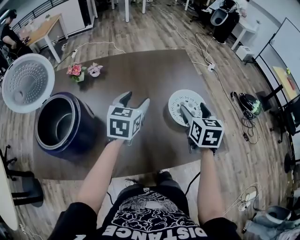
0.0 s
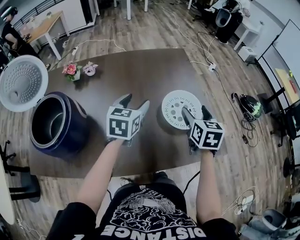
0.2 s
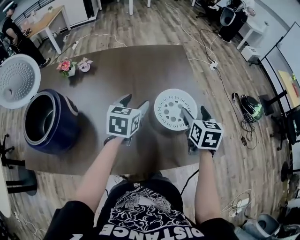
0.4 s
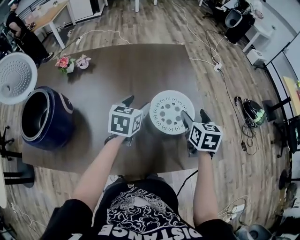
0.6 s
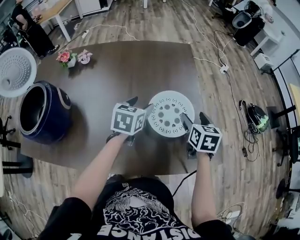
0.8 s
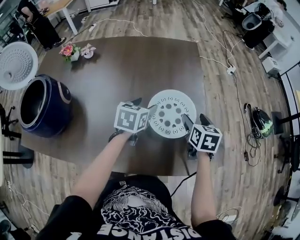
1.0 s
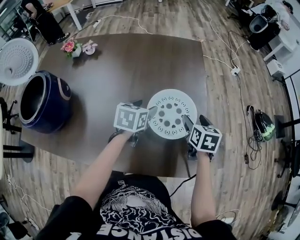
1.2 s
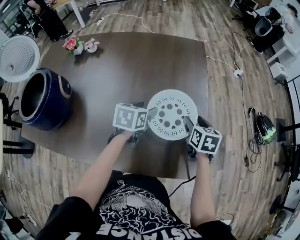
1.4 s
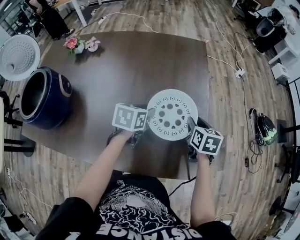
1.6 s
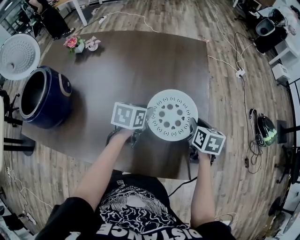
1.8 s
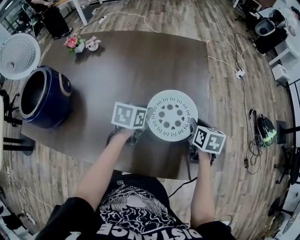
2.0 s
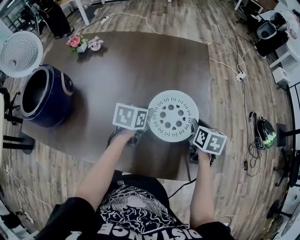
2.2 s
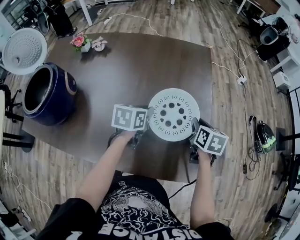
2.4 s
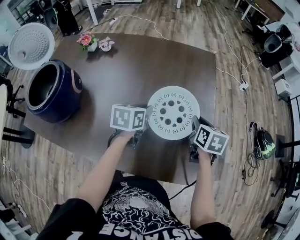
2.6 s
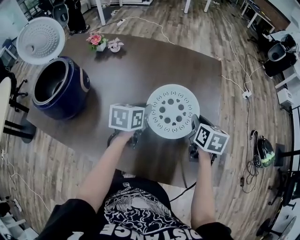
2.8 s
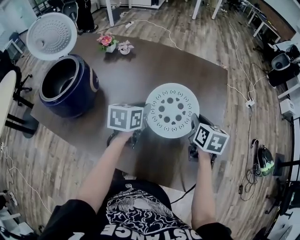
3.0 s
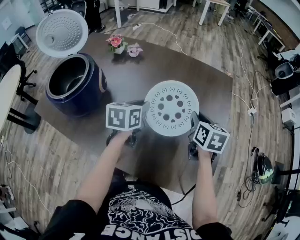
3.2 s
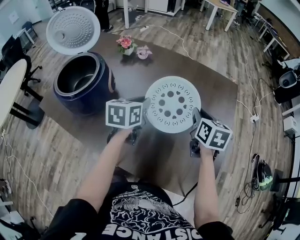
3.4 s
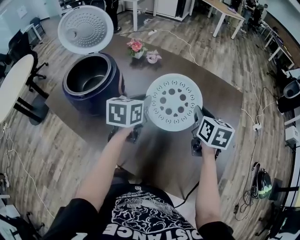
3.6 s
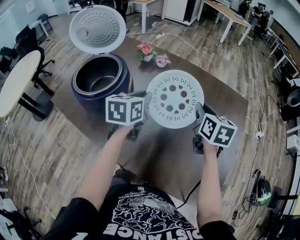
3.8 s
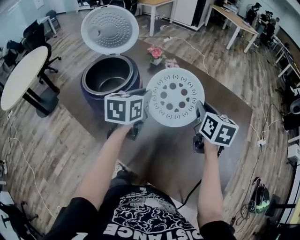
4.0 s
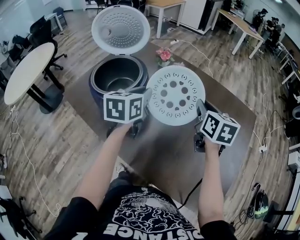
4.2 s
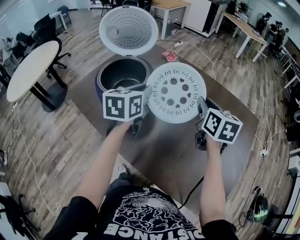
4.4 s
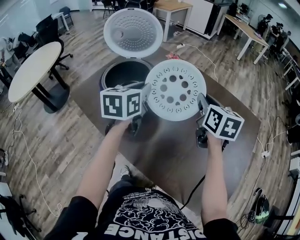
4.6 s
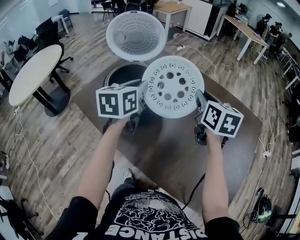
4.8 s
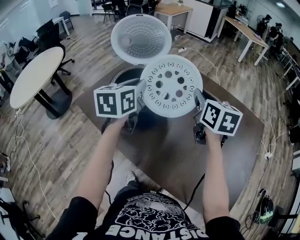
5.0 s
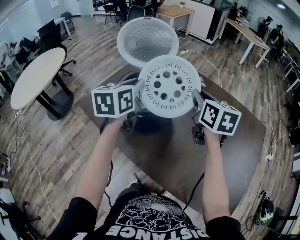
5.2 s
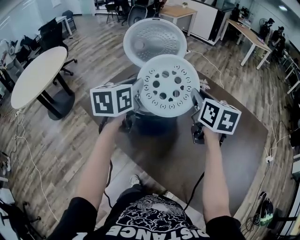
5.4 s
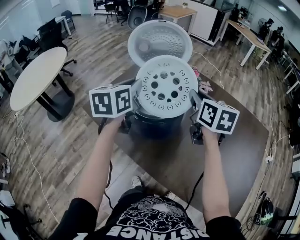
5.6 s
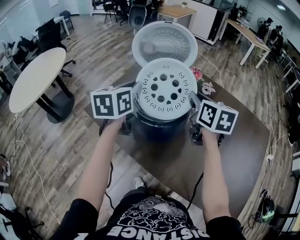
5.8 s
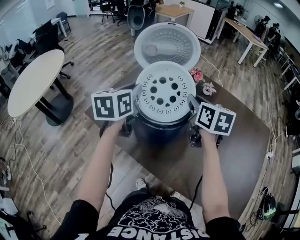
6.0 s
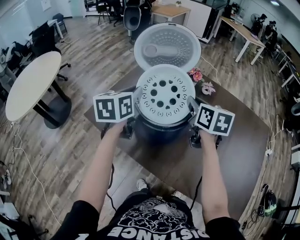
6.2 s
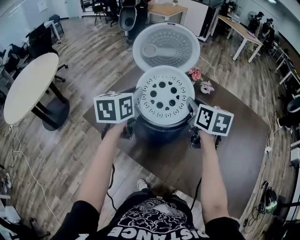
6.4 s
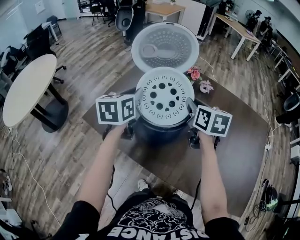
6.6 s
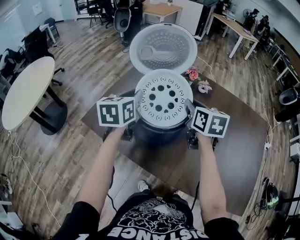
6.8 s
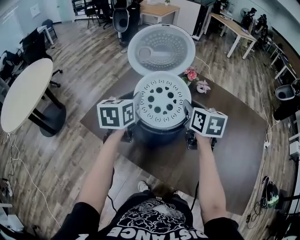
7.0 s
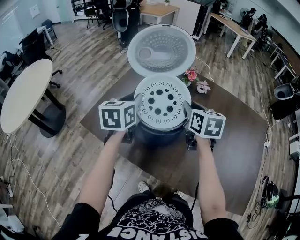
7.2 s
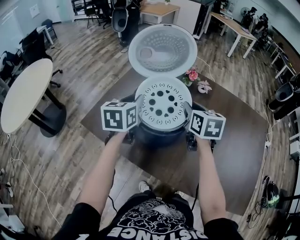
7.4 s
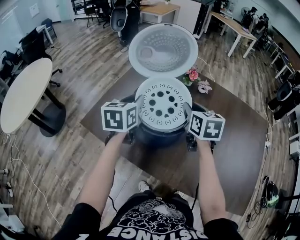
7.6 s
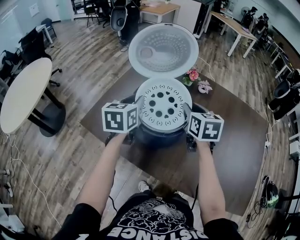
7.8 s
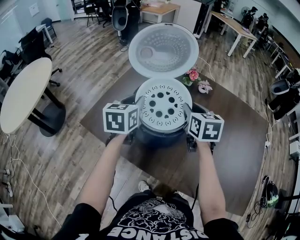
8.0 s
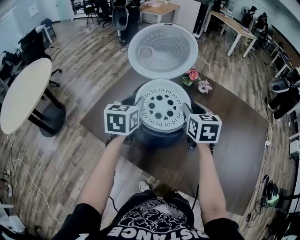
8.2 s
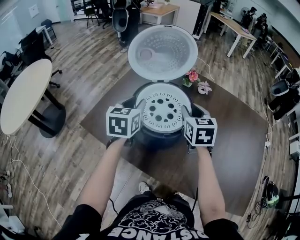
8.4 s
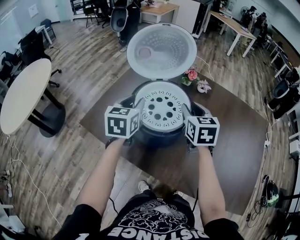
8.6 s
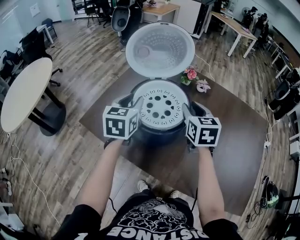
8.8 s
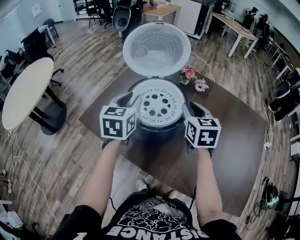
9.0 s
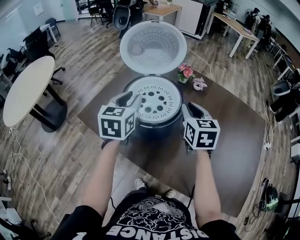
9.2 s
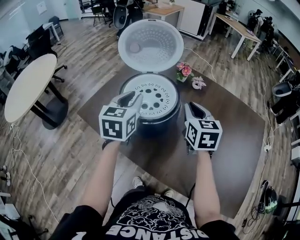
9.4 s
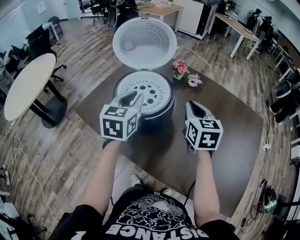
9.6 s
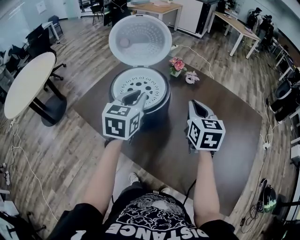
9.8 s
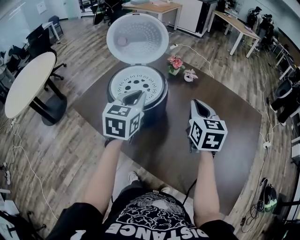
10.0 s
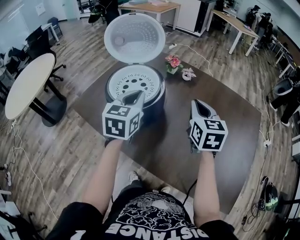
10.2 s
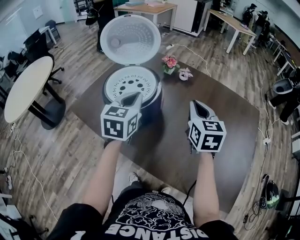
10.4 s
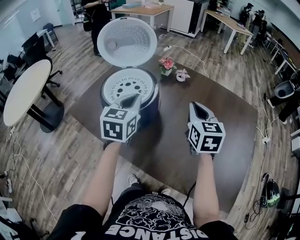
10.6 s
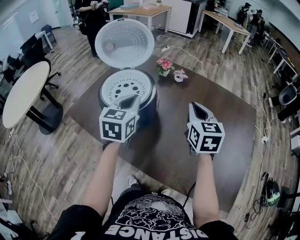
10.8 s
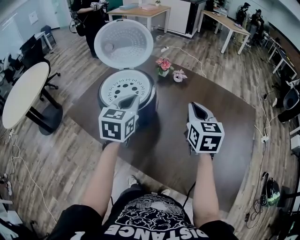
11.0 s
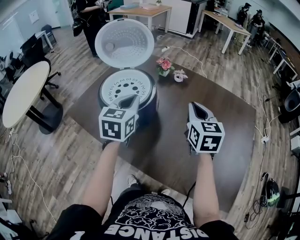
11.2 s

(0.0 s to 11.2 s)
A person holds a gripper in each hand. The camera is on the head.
0.0 s - 1.6 s: The right gripper moves downward, to the right and forward, approximately 25 cm, turns by roughly 20 degrees, and closes, while the left gripper heads downward and to the right, covering some 20 cm, and rotates roughly 30 degrees.
1.6 s - 3.2 s: Both grippers move to the left and upward, approximately 20 cm. The left gripper swivels roughly 30 degrees.
3.2 s - 4.8 s: The two grippers go some 35 cm to the left and upward. The left gripper changes its angle by roughly 30 degrees. The right gripper changes its angle by approximately 30 degrees.
4.8 s - 6.4 s: Both grippers move to the left, some 15 cm.
6.4 s - 8.0 s: The left gripper ends up about 5 cm from where it was.
8.0 s - 9.6 s: The grippers both shift to the right and backward by roughly 10 cm.
9.6 s - 11.2 s: Both grippers travel together to the right, some 10 cm.

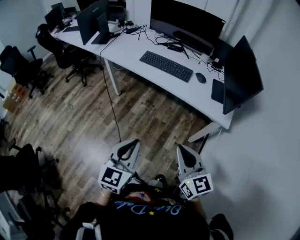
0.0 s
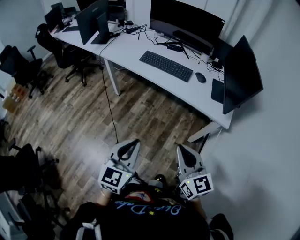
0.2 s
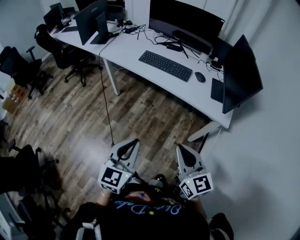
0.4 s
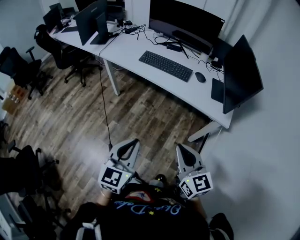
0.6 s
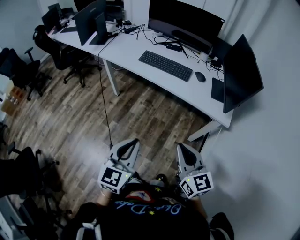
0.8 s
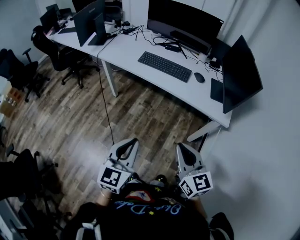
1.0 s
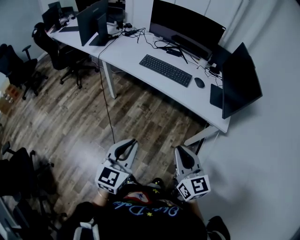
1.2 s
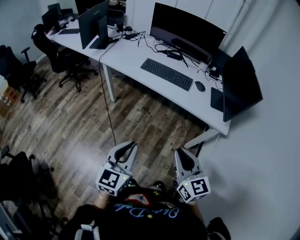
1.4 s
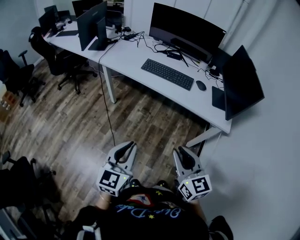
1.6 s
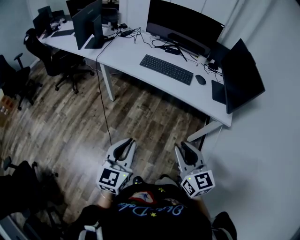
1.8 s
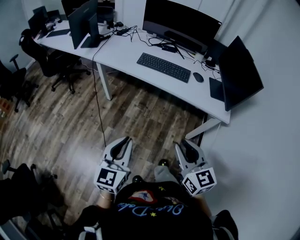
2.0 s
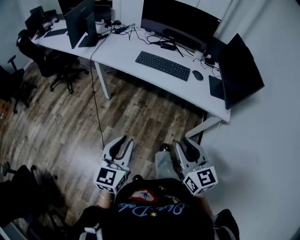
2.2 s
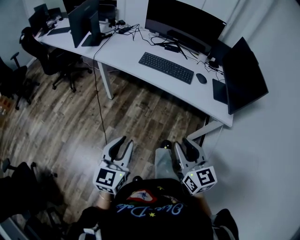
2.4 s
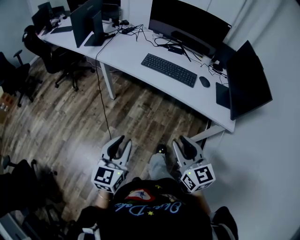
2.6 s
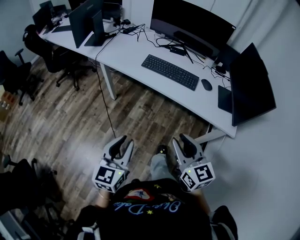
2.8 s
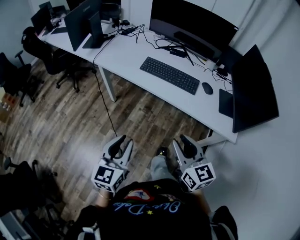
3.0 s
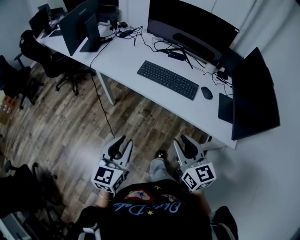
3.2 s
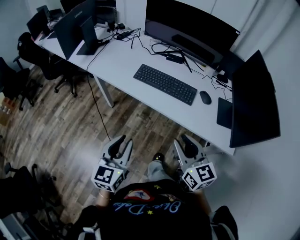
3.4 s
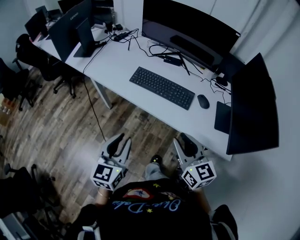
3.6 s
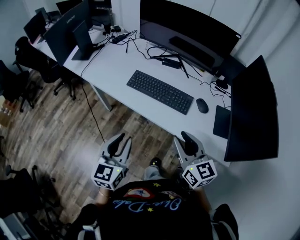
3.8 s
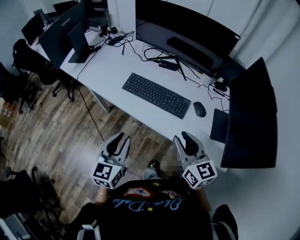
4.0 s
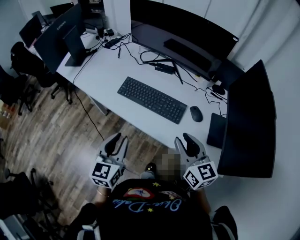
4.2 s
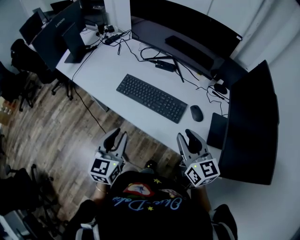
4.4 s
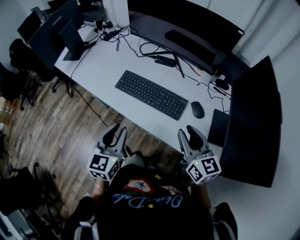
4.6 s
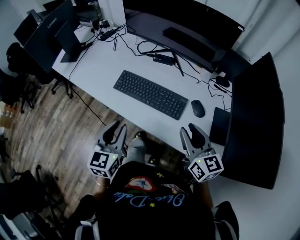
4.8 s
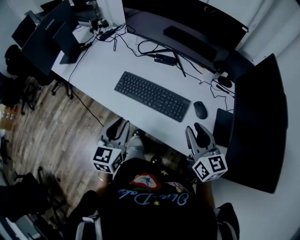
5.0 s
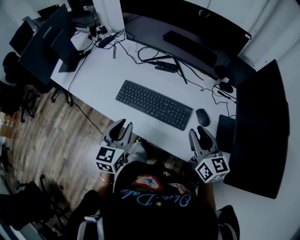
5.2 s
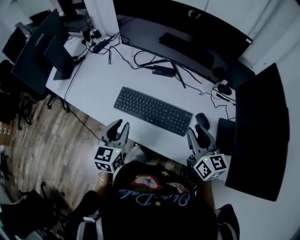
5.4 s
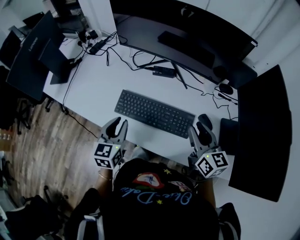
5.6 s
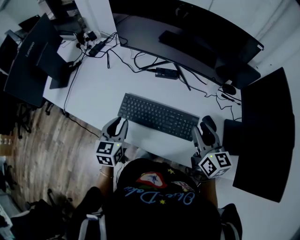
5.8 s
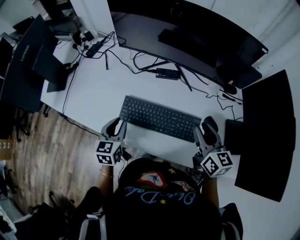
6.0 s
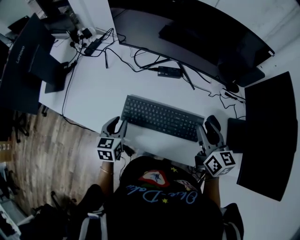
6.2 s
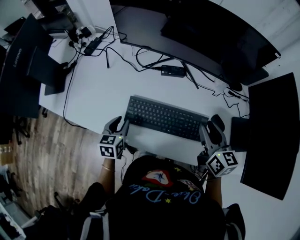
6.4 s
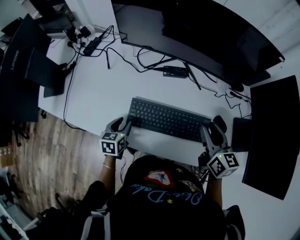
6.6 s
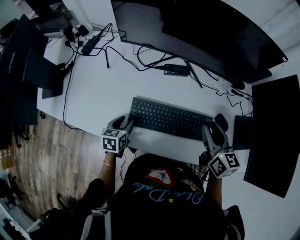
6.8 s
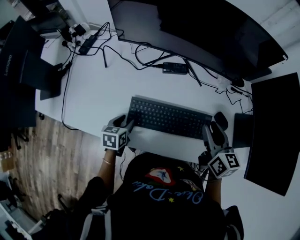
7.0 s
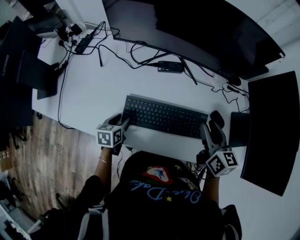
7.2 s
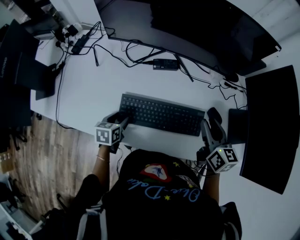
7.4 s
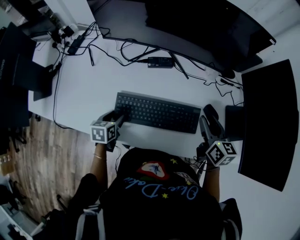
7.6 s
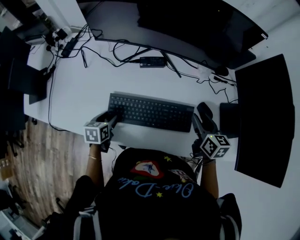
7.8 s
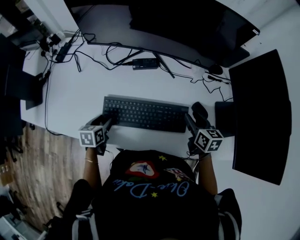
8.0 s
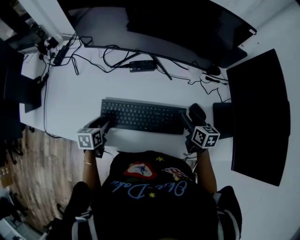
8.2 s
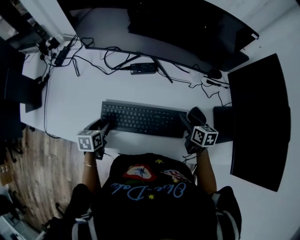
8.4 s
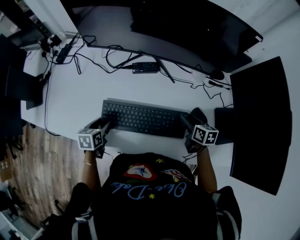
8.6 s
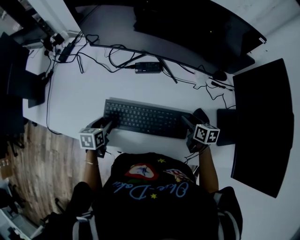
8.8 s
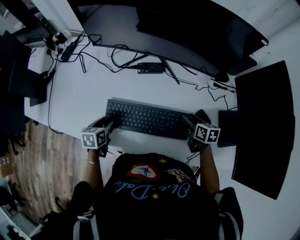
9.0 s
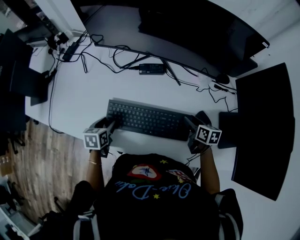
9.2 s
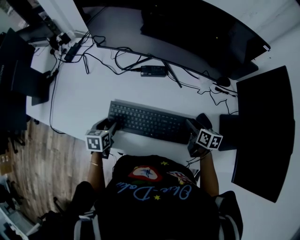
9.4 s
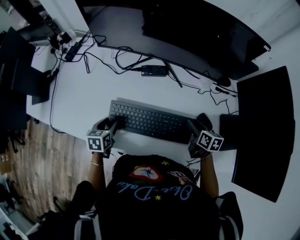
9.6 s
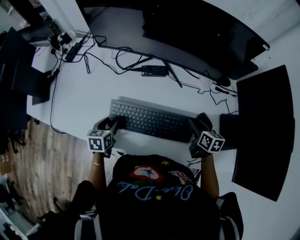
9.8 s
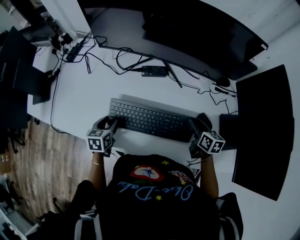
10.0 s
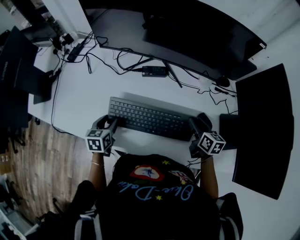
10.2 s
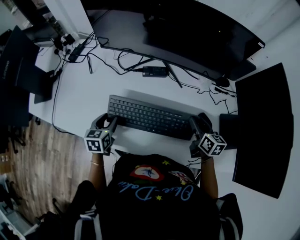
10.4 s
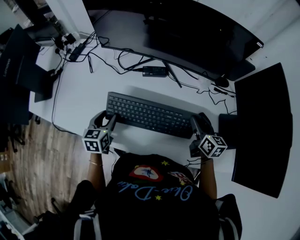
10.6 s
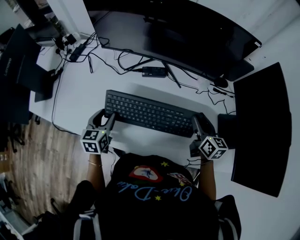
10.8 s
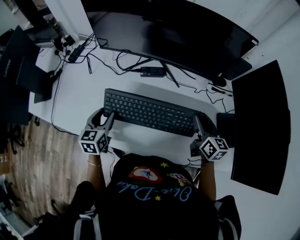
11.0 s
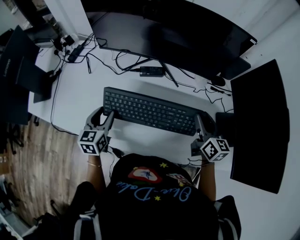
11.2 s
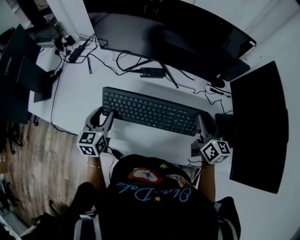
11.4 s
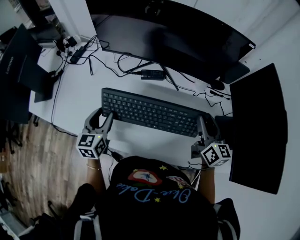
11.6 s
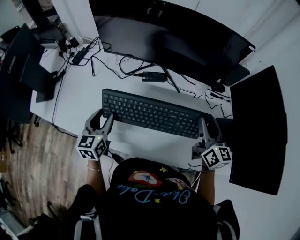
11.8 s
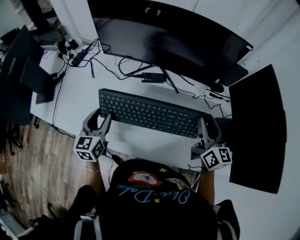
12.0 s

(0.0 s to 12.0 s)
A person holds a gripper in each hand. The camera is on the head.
0.0 s - 1.6 s: Both grippers move to the left, some 10 cm.
1.6 s - 3.0 s: The two grippers go approximately 15 cm forward.
3.0 s - 4.4 s: Both grippers move forward and to the right, some 30 cm.
4.4 s - 6.0 s: The right gripper is displaced forward by about 15 cm, and rotates about 20 degrees; the left gripper travels forward and downward by roughly 25 cm.
6.0 s - 7.6 s: The right gripper ends up some 5 cm from where it was; the left gripper shifts about 10 cm downward, swivels roughly 30 degrees, and opens.
7.6 s - 9.0 s: The right gripper is displaced downward by about 15 cm, and changes its angle by roughly 20 degrees.
9.0 s - 10.4 s: The right gripper is displaced upward by some 10 cm, while the left gripper shifts some 5 cm upward.
10.4 s - 12.0 s: Both grippers move upward, some 15 cm. The left gripper turns by roughly 20 degrees. The right gripper turns by about 30 degrees.

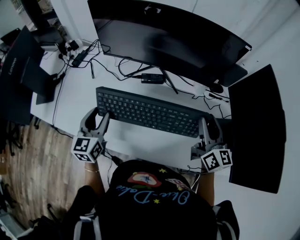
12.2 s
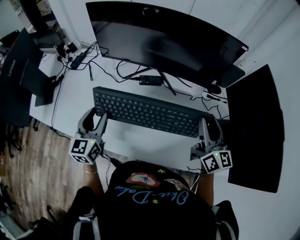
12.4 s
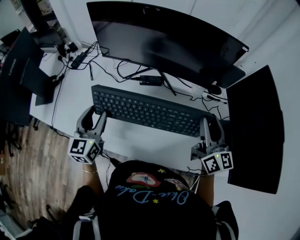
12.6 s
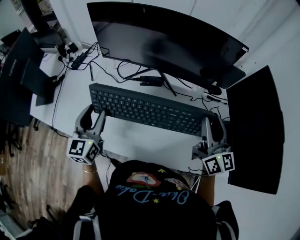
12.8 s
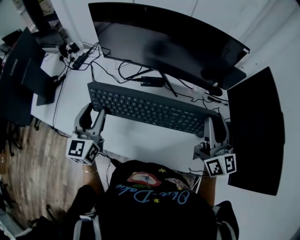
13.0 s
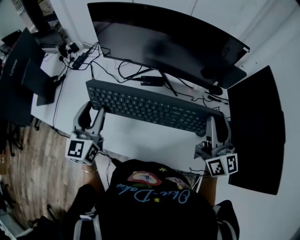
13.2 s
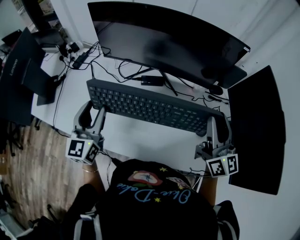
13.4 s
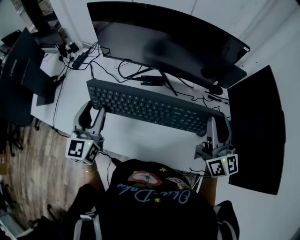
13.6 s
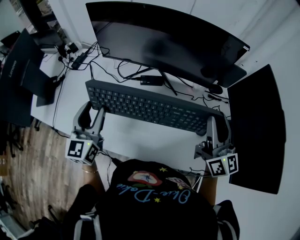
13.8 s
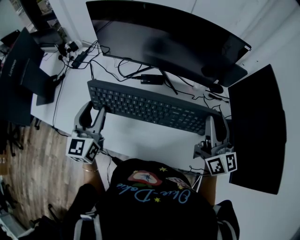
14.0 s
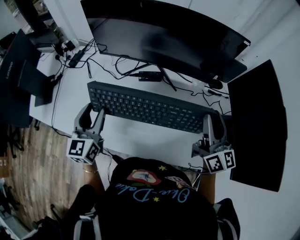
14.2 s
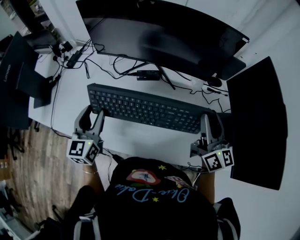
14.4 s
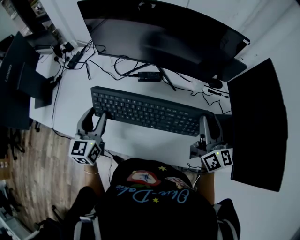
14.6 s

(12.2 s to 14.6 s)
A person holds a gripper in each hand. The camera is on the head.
12.2 s - 13.4 s: Both grippers move upward, some 10 cm.
13.4 s - 14.6 s: The two grippers go some 5 cm downward.
